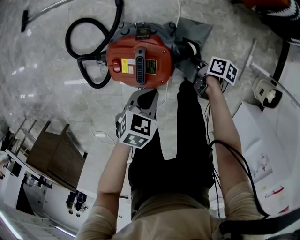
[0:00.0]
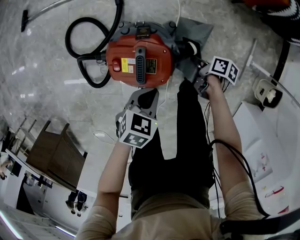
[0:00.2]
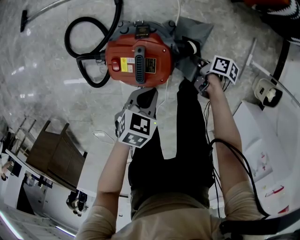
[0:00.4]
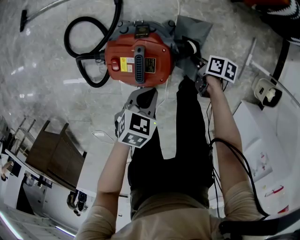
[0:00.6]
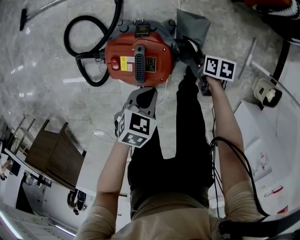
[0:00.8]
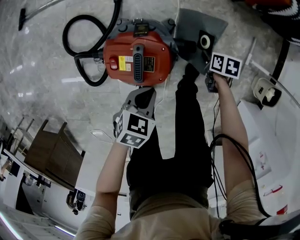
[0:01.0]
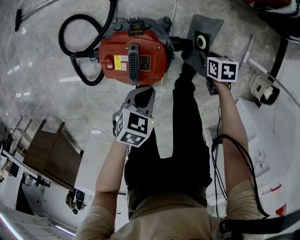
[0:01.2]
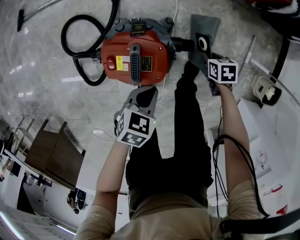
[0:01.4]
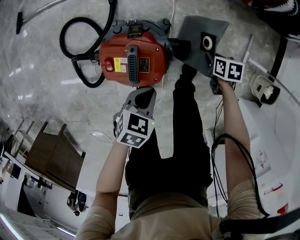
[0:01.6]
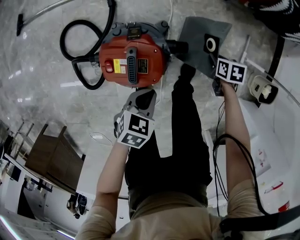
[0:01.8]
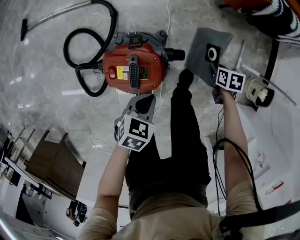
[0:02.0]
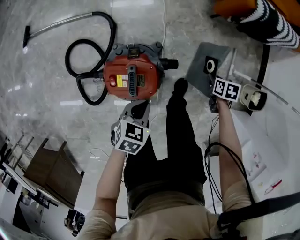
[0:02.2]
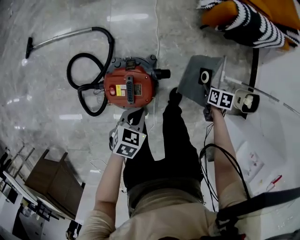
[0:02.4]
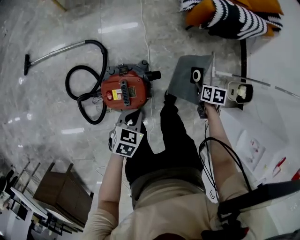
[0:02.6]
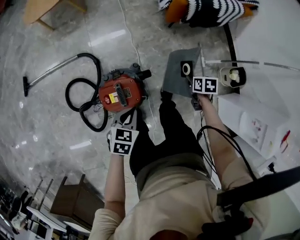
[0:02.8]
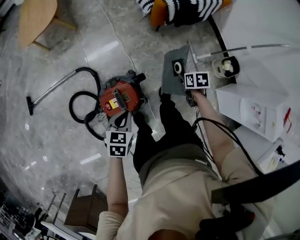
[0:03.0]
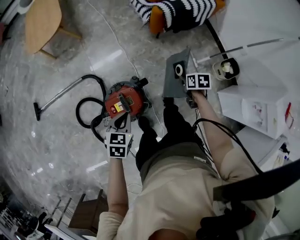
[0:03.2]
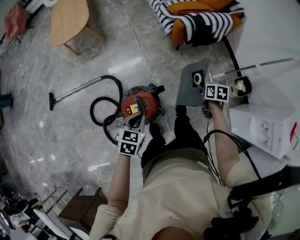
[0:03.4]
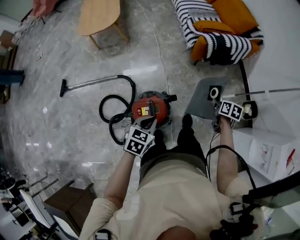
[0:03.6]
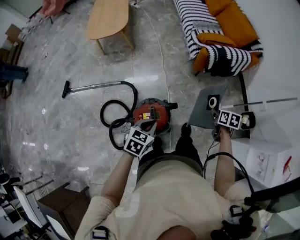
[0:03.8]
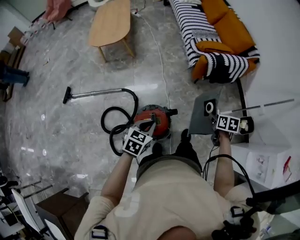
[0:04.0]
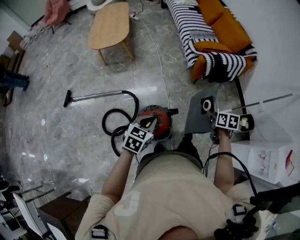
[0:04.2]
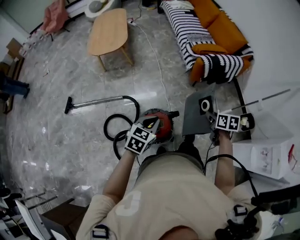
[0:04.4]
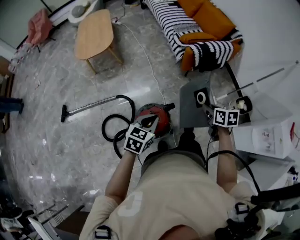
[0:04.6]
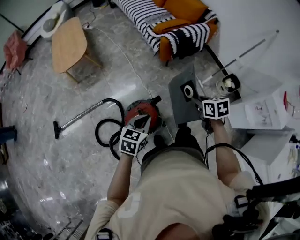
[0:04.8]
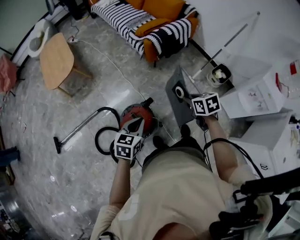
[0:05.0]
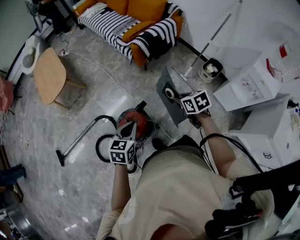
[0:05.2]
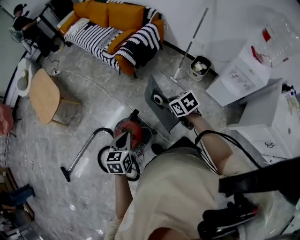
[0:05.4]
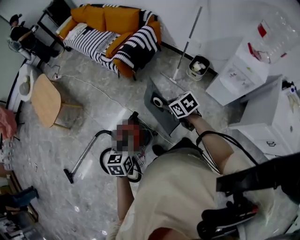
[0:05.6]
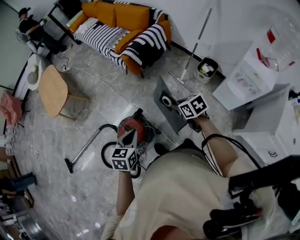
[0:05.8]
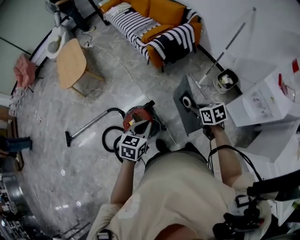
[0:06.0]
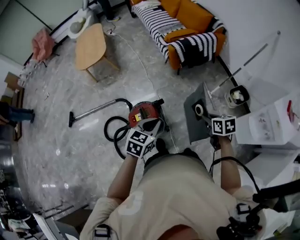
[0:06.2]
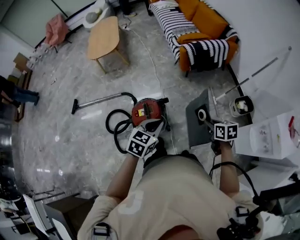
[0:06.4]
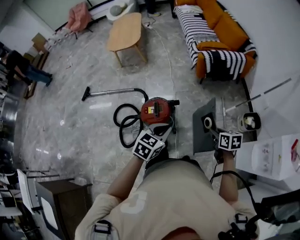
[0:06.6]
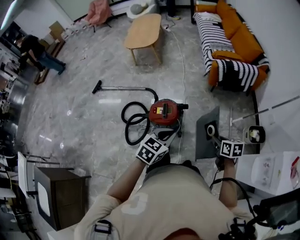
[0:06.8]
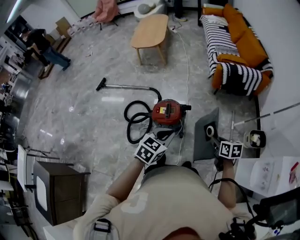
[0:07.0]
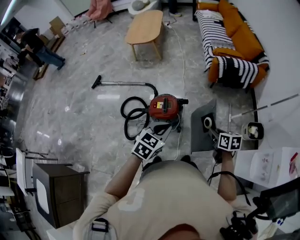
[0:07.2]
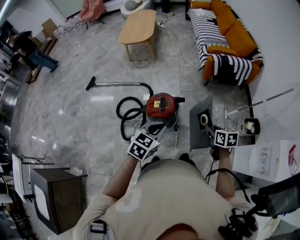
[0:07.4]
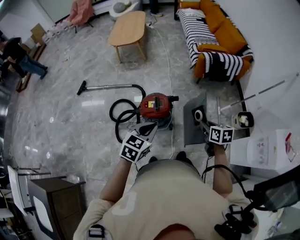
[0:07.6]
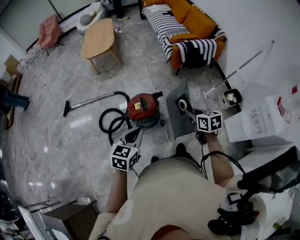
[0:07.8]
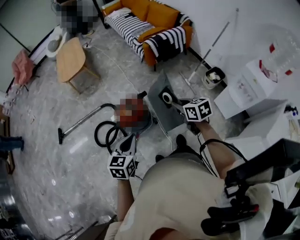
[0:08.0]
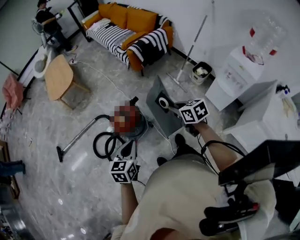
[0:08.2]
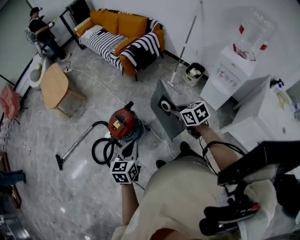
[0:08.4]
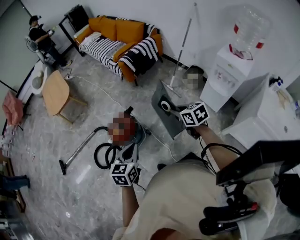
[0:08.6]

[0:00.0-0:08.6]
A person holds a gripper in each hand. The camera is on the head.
0:00.0 to 0:01.4: The right gripper moves about 5 cm, and rotates around the line of its fingers by roughly 40 degrees, counterclockwise from behind.
0:01.4 to 0:02.8: The two grippers go about 20 cm upward. The right gripper rotates roughly 30 degrees.
0:02.8 to 0:04.4: The grippers both shift upward by about 25 cm. The right gripper changes its angle by approximately 20 degrees.
0:04.4 to 0:05.8: The left gripper heads to the right and backward, covering some 15 cm. The right gripper travels backward and to the right by some 15 cm.
0:05.8 to 0:07.2: The right gripper is displaced backward by roughly 10 cm, while the left gripper moves backward and upward, some 15 cm, and turns by some 20 degrees.
0:07.2 to 0:08.6: The right gripper ends up approximately 15 cm from where it was, and changes its angle by about 20 degrees, while the left gripper moves roughly 10 cm.

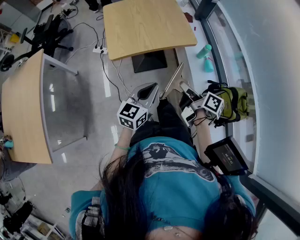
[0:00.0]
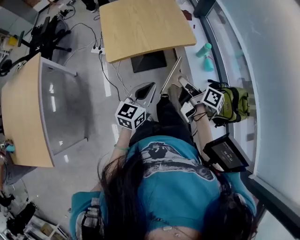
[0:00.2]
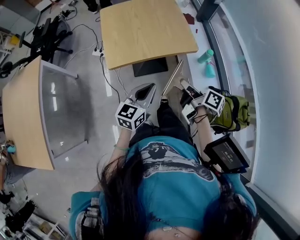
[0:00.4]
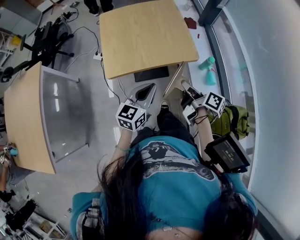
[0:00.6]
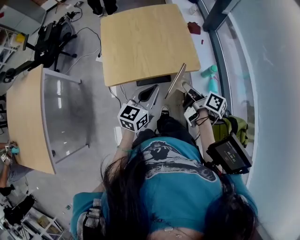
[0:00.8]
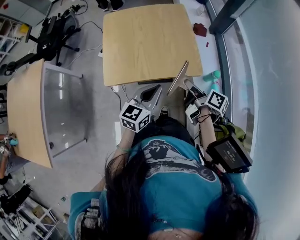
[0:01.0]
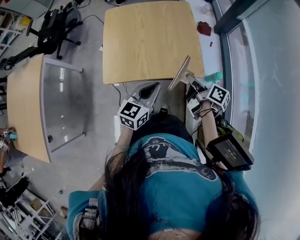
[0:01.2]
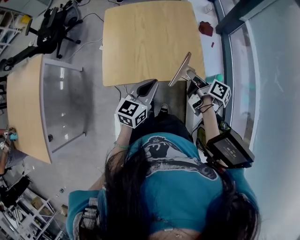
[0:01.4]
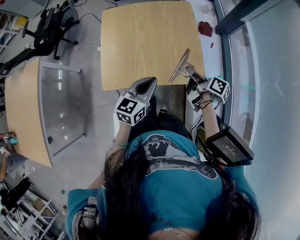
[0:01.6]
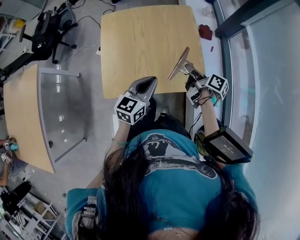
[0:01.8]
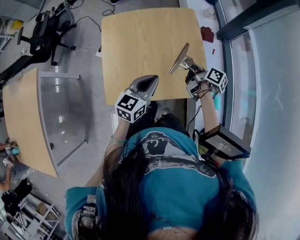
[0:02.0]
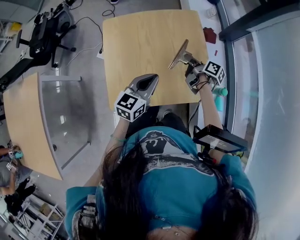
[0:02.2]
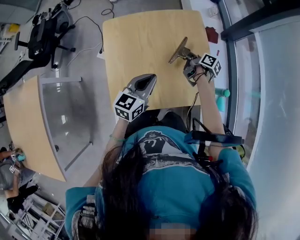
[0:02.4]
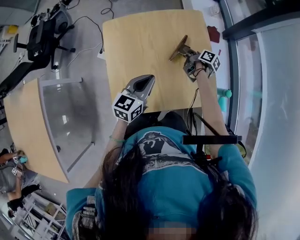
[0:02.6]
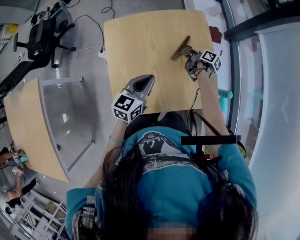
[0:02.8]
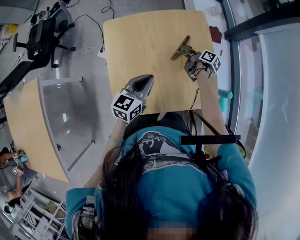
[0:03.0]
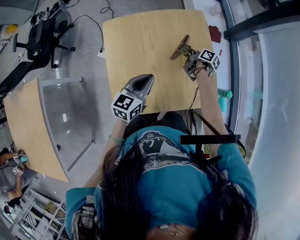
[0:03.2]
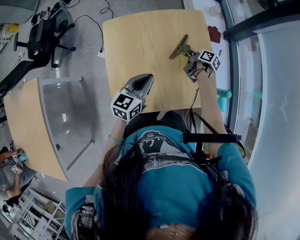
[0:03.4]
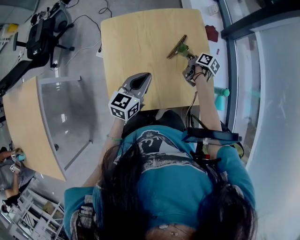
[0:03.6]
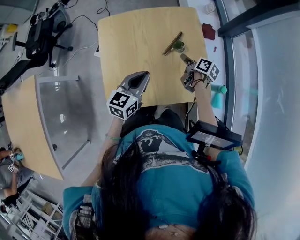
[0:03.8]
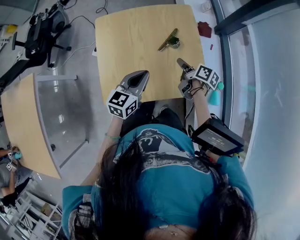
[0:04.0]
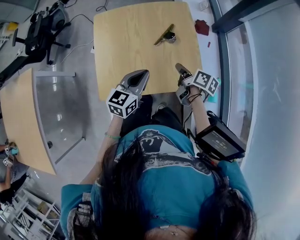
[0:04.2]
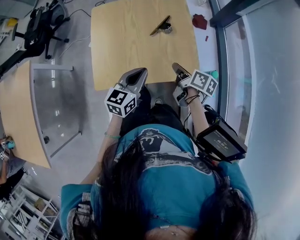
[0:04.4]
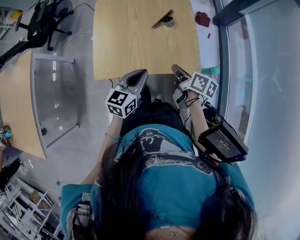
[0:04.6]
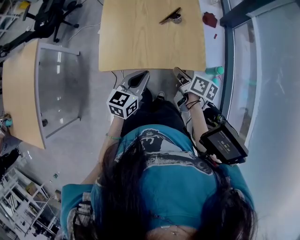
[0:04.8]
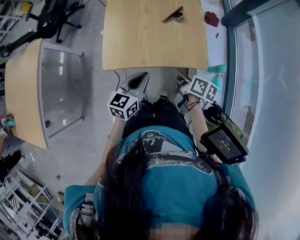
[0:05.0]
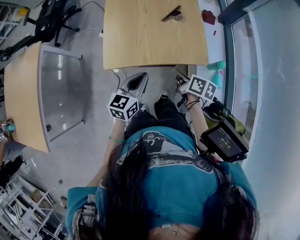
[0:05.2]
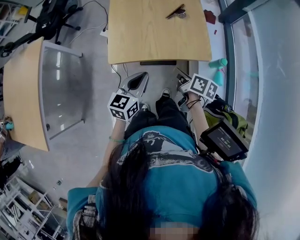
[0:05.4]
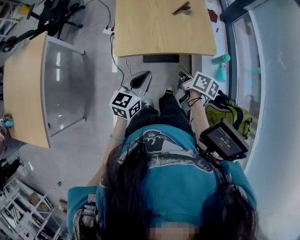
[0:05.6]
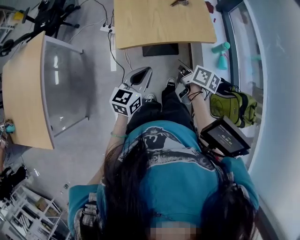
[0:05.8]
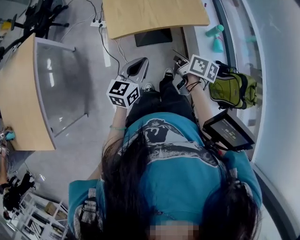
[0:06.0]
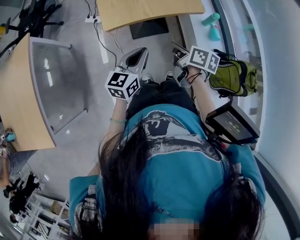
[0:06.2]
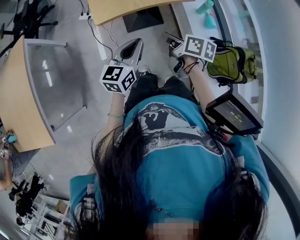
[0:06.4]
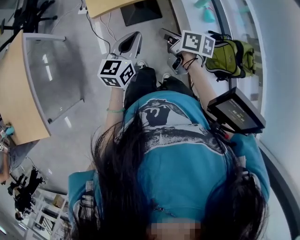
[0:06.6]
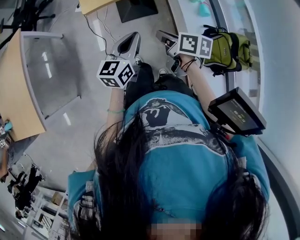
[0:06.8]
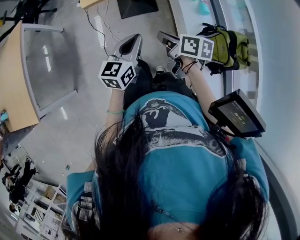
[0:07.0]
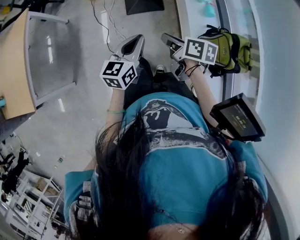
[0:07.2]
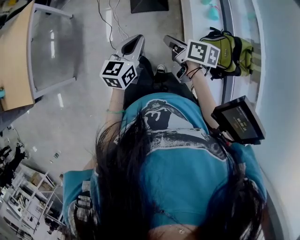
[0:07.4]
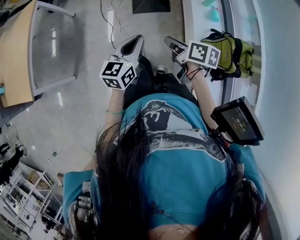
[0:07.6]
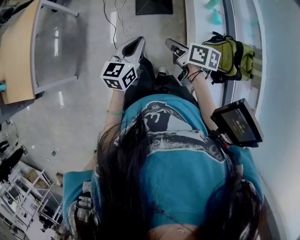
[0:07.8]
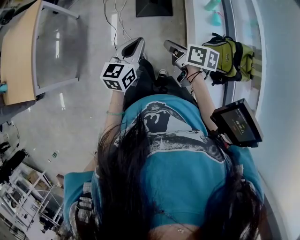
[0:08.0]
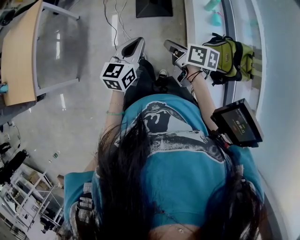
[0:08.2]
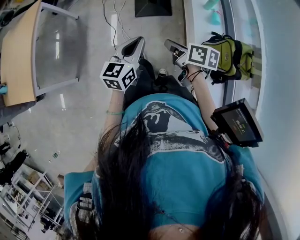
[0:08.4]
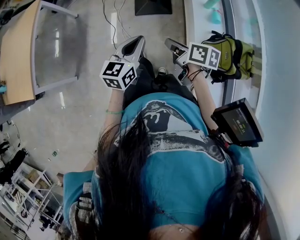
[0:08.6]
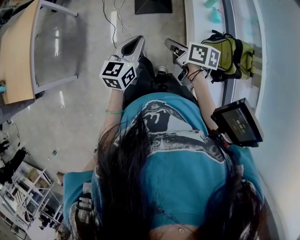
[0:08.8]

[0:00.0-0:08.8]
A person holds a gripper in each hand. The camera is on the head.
0:00.0 to 0:01.4: The left gripper shifts by approximately 35 cm.
0:01.4 to 0:03.0: The left gripper moves about 25 cm.
0:03.0 to 0:04.4: The left gripper moves approximately 20 cm.
0:04.4 to 0:05.8: The left gripper changes place by approximately 35 cm.
0:05.8 to 0:07.4: The left gripper ends up roughly 25 cm from where it was.

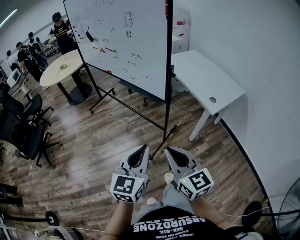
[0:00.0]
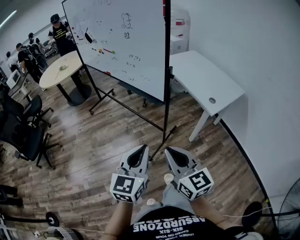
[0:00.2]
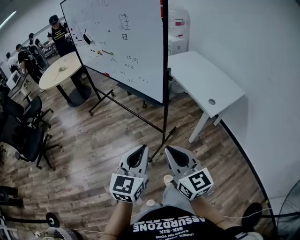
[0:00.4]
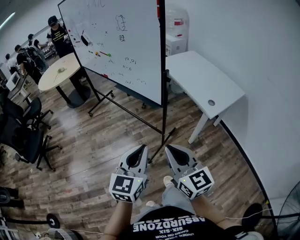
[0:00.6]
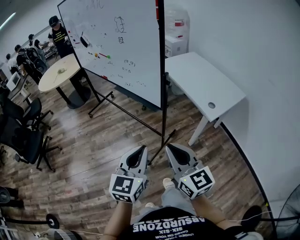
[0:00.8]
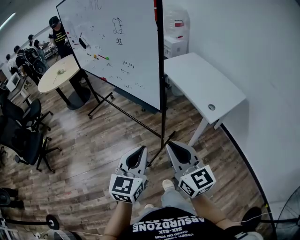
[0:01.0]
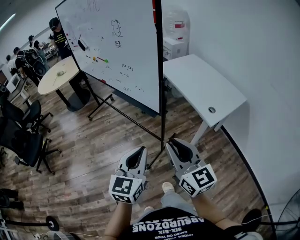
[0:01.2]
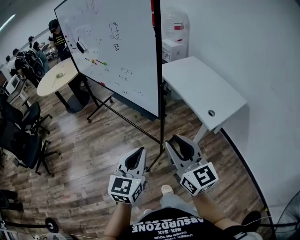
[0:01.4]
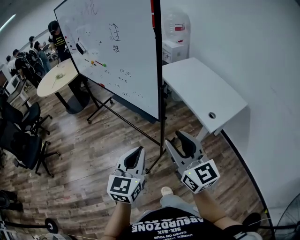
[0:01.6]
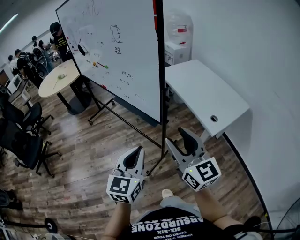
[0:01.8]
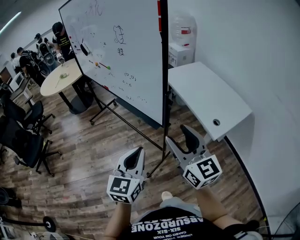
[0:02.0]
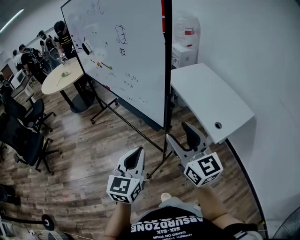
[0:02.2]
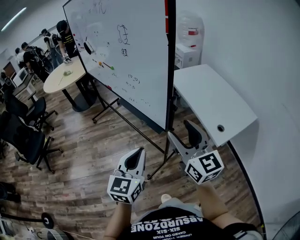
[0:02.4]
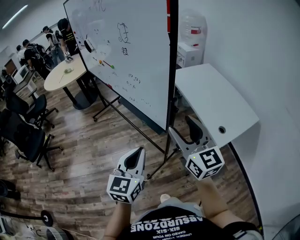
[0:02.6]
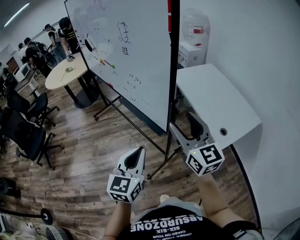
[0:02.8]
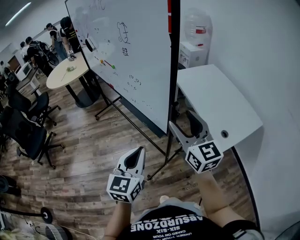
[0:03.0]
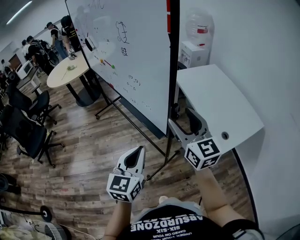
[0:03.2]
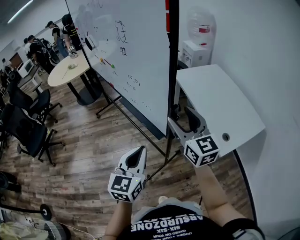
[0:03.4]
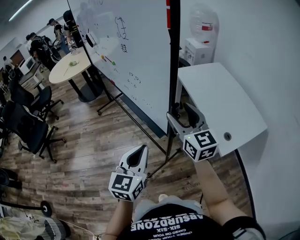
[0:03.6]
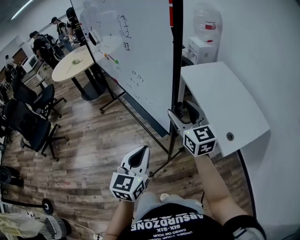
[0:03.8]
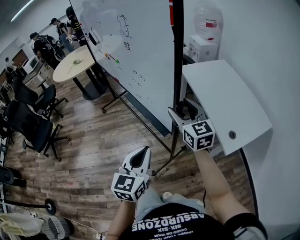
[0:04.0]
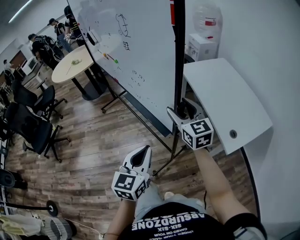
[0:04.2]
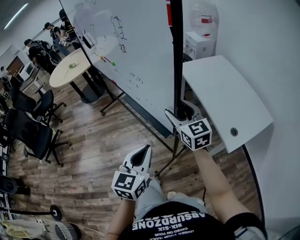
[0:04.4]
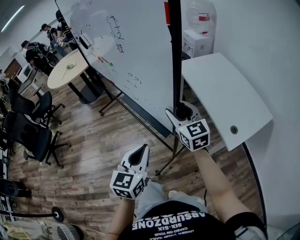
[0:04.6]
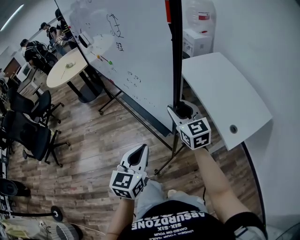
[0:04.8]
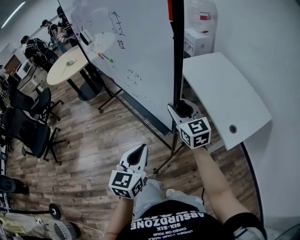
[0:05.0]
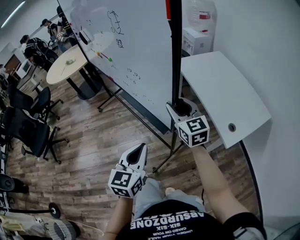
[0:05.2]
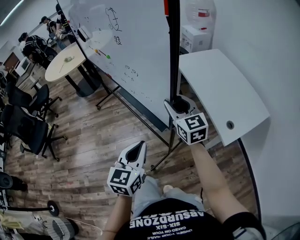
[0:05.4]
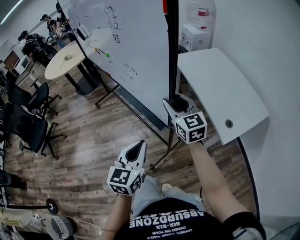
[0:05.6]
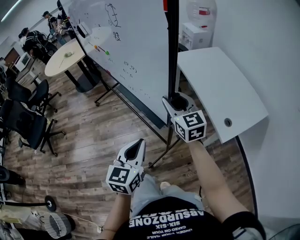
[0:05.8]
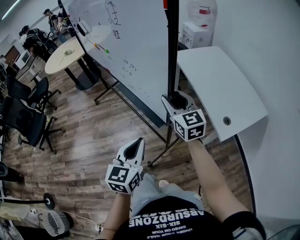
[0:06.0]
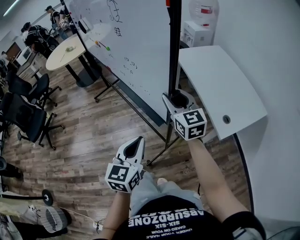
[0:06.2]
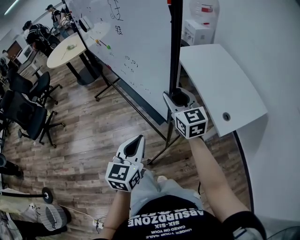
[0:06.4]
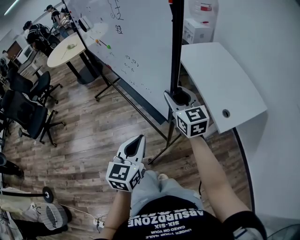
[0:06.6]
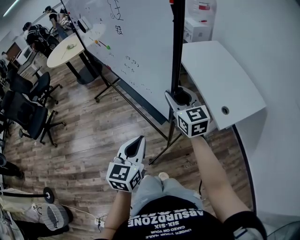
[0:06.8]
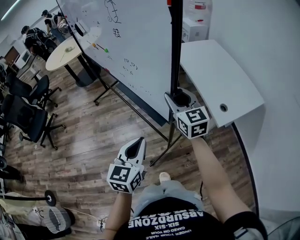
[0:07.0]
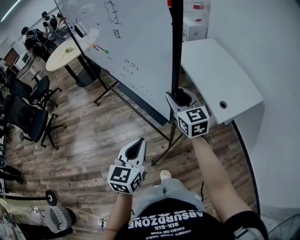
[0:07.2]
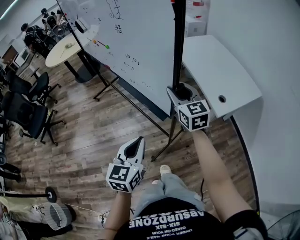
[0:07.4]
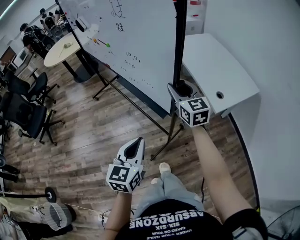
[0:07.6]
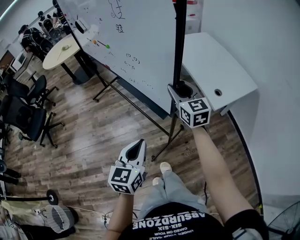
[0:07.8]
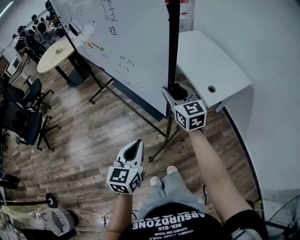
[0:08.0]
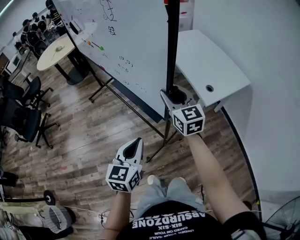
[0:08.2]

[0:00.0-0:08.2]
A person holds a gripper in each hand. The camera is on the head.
0:00.0 to 0:01.6: The grippers both shift forward and to the right by some 15 cm. The right gripper opens its fingers.
0:01.6 to 0:03.2: The right gripper is displaced forward by about 20 cm, and opens its fingers; the left gripper shifts approximately 15 cm forward.
0:03.2 to 0:05.0: The right gripper travels forward and downward by approximately 15 cm, and closes; the left gripper shifts by about 5 cm.
0:05.0 to 0:06.6: Both grippers move backward, approximately 5 cm.
0:06.6 to 0:08.2: The two grippers go roughly 15 cm backward.
